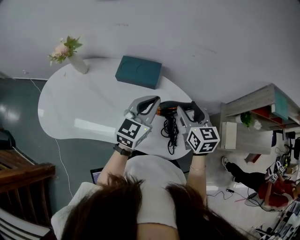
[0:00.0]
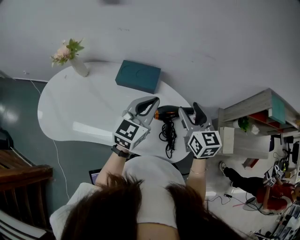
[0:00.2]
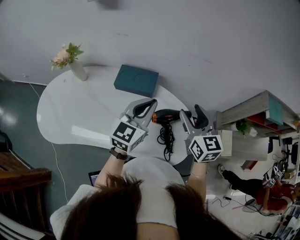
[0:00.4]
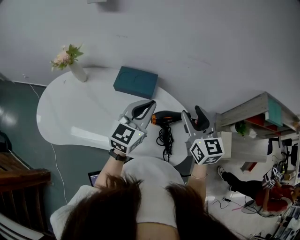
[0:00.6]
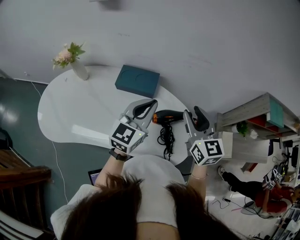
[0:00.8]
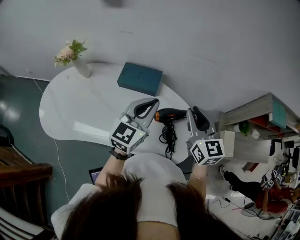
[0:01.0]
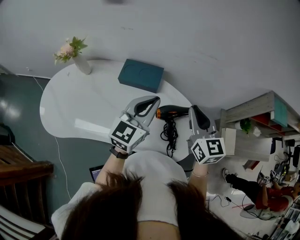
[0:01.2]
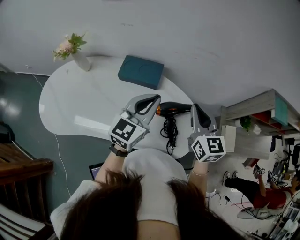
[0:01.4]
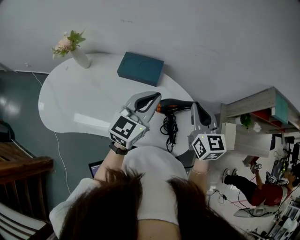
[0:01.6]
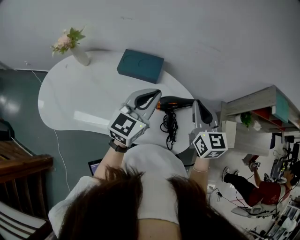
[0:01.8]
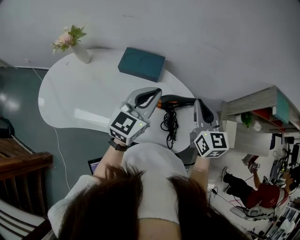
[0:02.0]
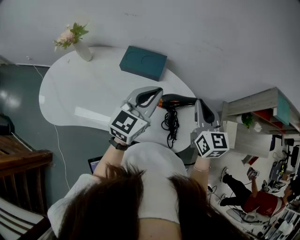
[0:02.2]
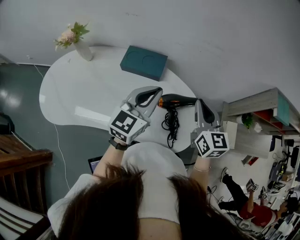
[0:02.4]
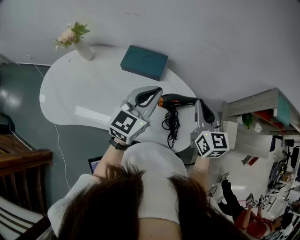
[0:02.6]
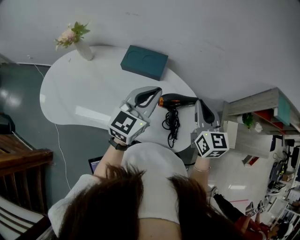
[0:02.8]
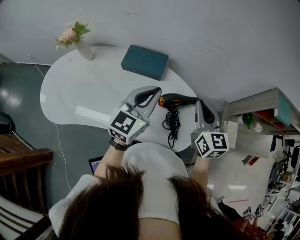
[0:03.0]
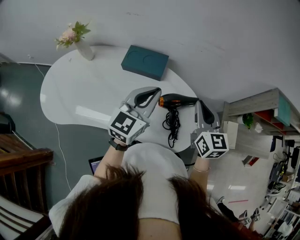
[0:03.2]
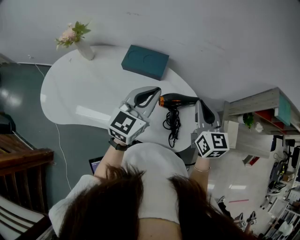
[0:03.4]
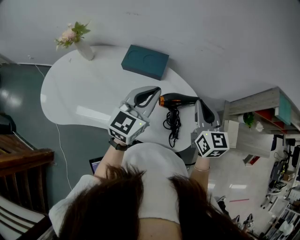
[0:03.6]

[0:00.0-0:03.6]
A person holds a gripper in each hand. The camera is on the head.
0:00.0 to 0:01.8: The right gripper travels upward by approximately 5 cm, and closes up.
0:01.8 to 0:03.6: The grippers move only a little.

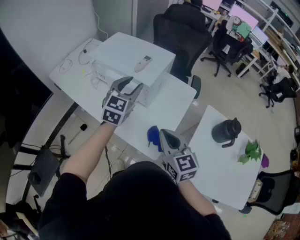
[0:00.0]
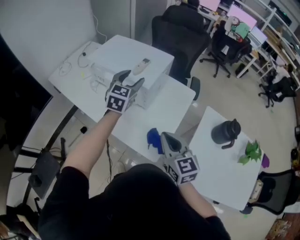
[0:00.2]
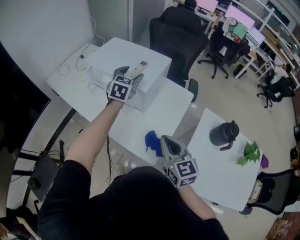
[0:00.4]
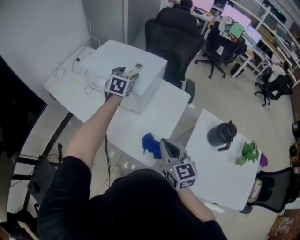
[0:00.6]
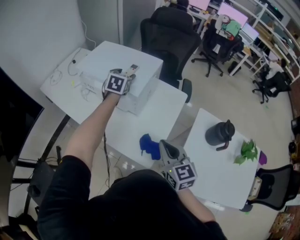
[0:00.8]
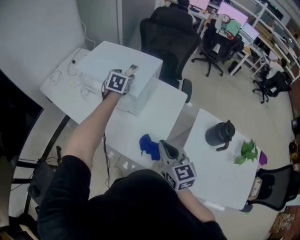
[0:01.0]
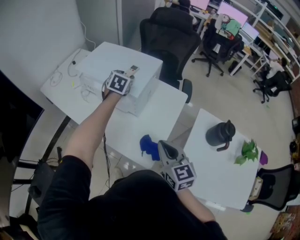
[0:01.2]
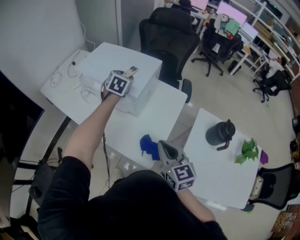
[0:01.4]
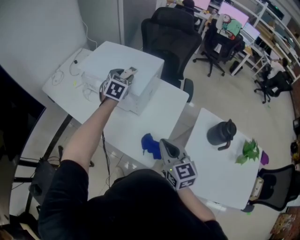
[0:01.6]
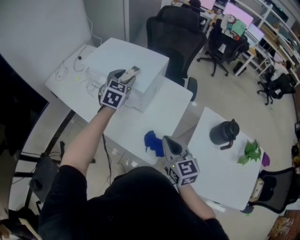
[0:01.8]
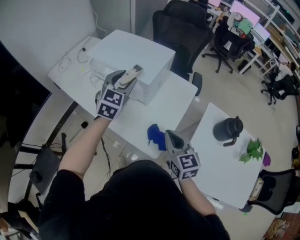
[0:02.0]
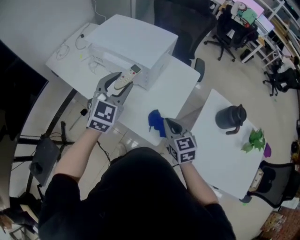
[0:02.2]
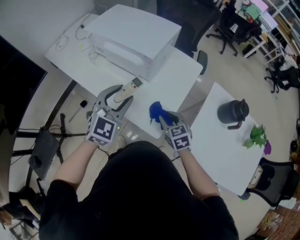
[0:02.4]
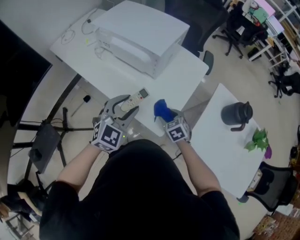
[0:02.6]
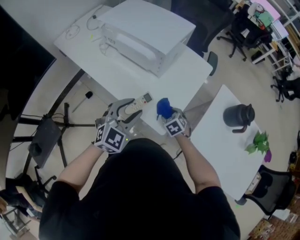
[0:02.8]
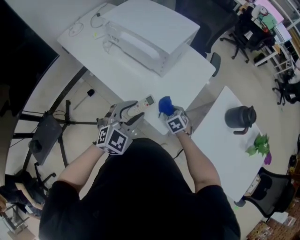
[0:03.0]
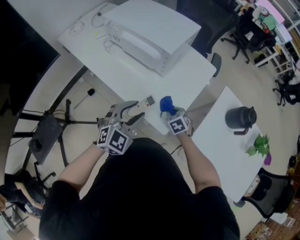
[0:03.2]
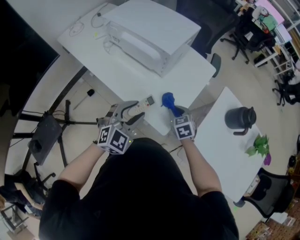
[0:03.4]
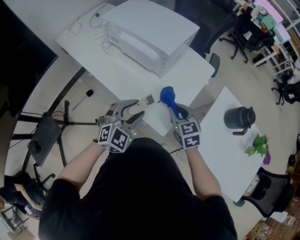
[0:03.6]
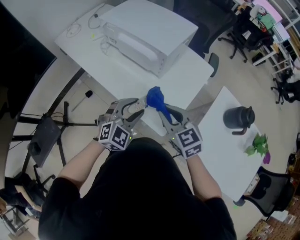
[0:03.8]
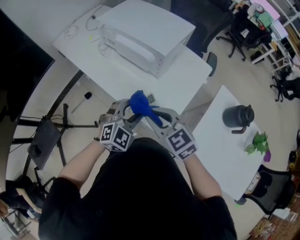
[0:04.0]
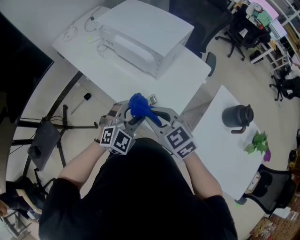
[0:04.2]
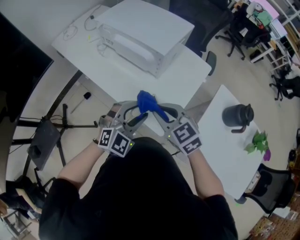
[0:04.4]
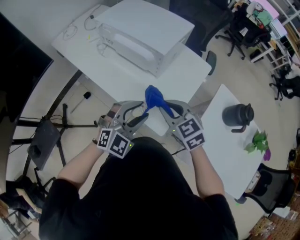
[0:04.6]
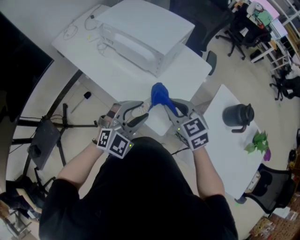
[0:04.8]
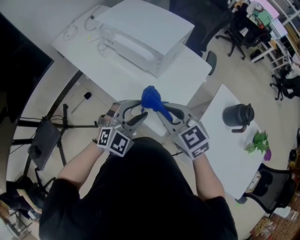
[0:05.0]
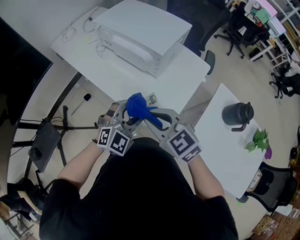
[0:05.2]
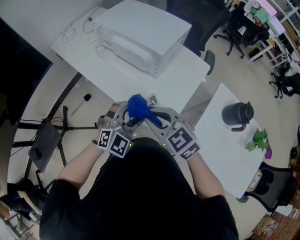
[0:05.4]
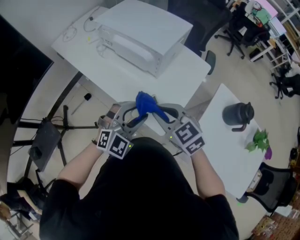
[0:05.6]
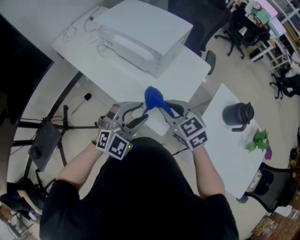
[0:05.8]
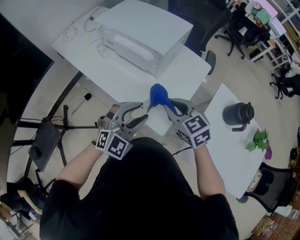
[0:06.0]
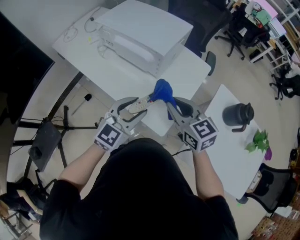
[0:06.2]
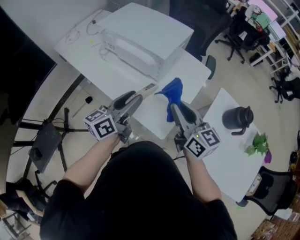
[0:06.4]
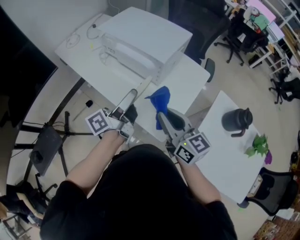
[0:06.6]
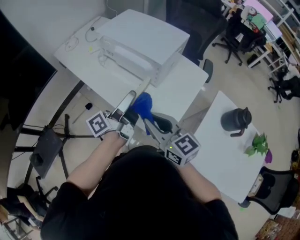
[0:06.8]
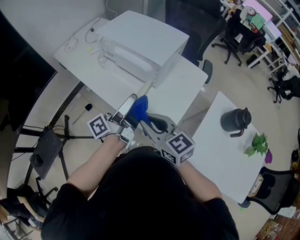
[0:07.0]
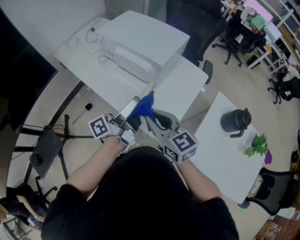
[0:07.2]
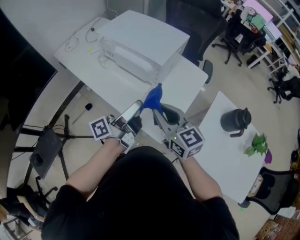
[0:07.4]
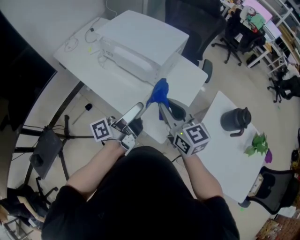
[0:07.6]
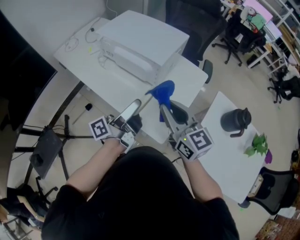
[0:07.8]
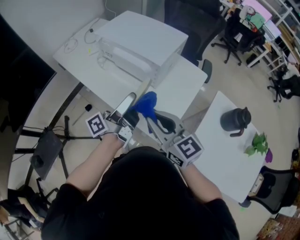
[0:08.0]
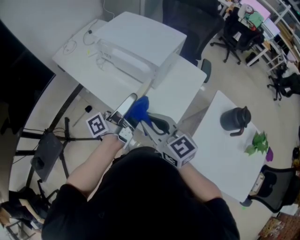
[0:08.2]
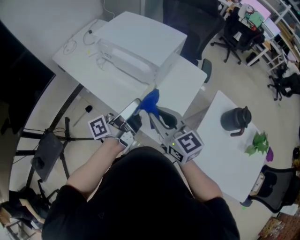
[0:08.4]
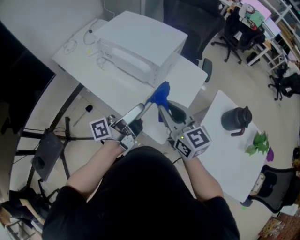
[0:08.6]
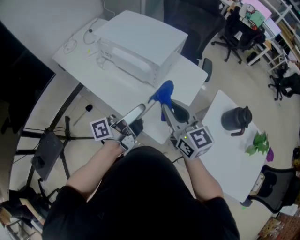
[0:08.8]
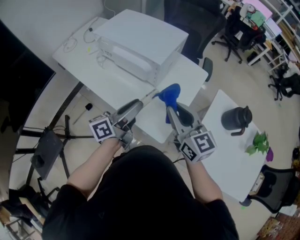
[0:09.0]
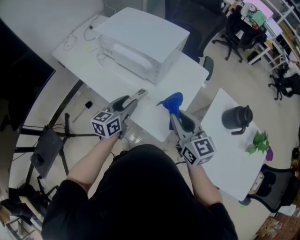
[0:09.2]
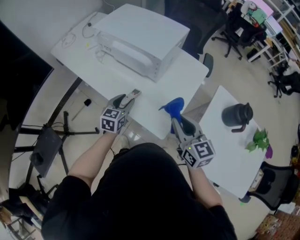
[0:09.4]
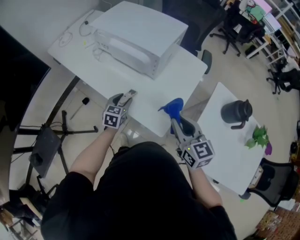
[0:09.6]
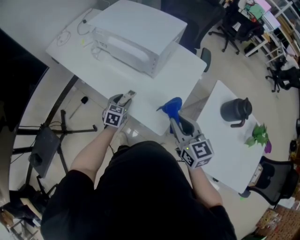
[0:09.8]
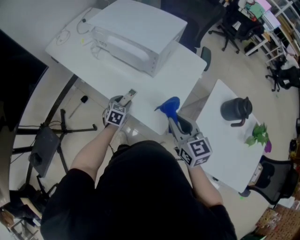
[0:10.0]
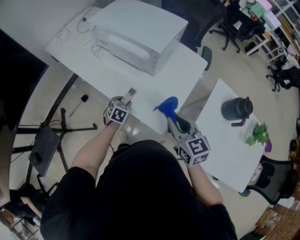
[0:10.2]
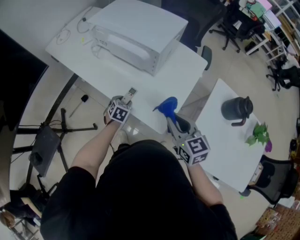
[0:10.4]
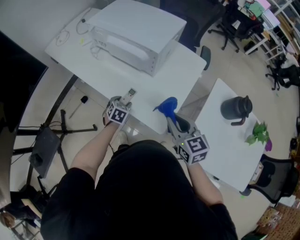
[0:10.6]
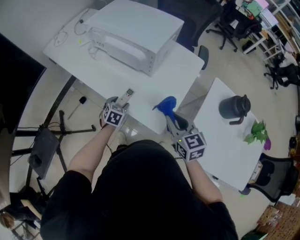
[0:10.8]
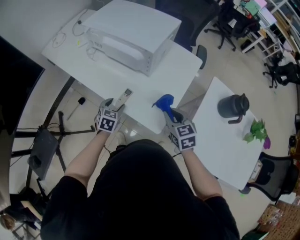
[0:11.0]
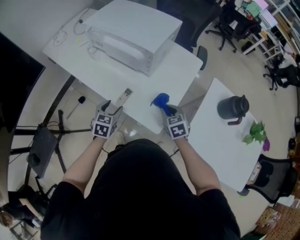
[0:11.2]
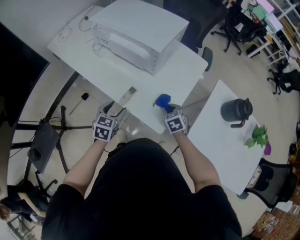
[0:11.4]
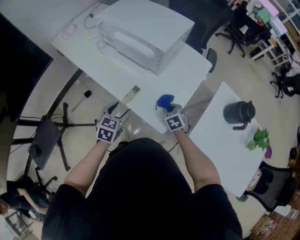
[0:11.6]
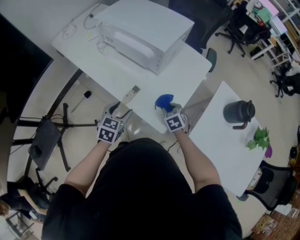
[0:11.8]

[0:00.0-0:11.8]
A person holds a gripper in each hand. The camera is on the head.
0:00.0 to 0:01.4: The left gripper heads forward and downward, covering some 15 cm, changes its angle by roughly 30 degrees, and opens, then closes once more.
0:01.4 to 0:03.0: The right gripper is displaced downward by approximately 30 cm, tips its fingers downward by some 40 degrees, and opens. Meanwhile the left gripper travels backward by roughly 35 cm, and swivels approximately 20 degrees.
0:03.0 to 0:04.4: The right gripper goes approximately 25 cm upward, turns by about 30 degrees, and closes its fingers.
0:04.4 to 0:06.0: The right gripper moves left and right over some 5 cm, changing direction 2 times.
0:06.0 to 0:07.4: The left gripper moves forward and upward, roughly 10 cm, and twists some 110 degrees counterclockwise, seen from behind, while the right gripper travels upward by approximately 5 cm, and turns by some 20 degrees.
0:07.4 to 0:08.8: There are only small adjustments of the grippers.
0:08.8 to 0:10.4: The right gripper heads downward and backward, covering roughly 10 cm. Meanwhile the left gripper moves downward, roughly 30 cm, and tips its fingers downward by roughly 80 degrees.
0:10.4 to 0:11.8: The left gripper heads upward and backward, covering roughly 15 cm; the right gripper is displaced downward by approximately 20 cm, and tips its fingers downward by some 30 degrees.

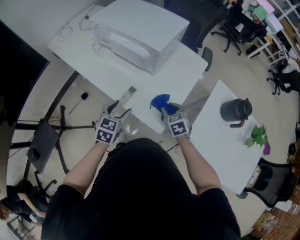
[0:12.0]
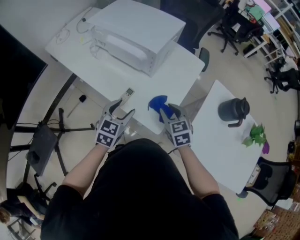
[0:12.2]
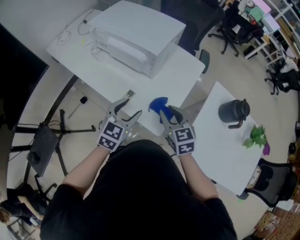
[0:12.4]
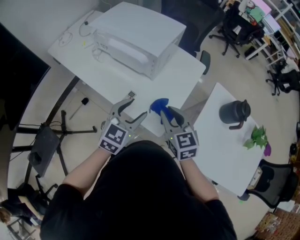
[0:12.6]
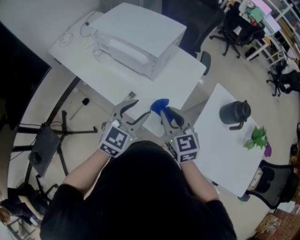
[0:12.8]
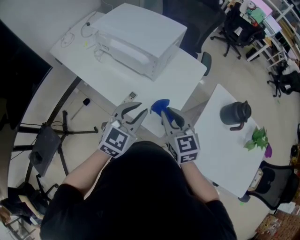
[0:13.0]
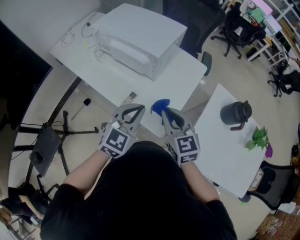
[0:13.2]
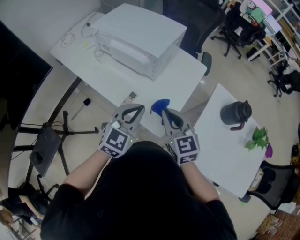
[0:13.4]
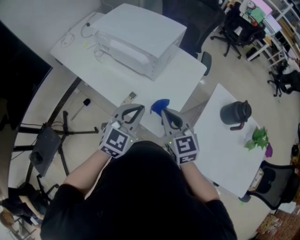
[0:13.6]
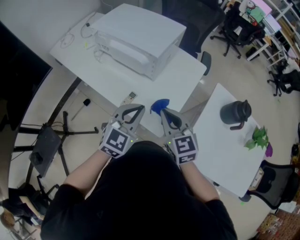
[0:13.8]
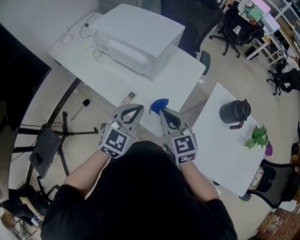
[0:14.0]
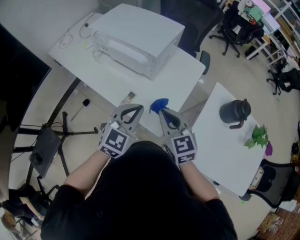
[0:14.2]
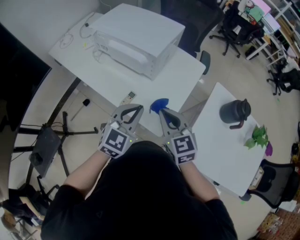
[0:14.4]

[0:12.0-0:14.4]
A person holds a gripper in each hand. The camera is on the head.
0:12.0 to 0:13.2: The left gripper heads upward and to the right, covering some 15 cm, turns by roughly 20 degrees, and closes. The right gripper goes roughly 20 cm upward, turns by about 30 degrees, and closes its fingers.
0:13.2 to 0:14.4: Neither gripper changes place.

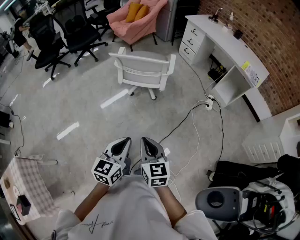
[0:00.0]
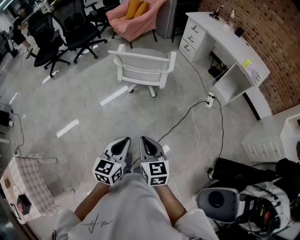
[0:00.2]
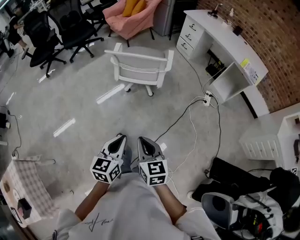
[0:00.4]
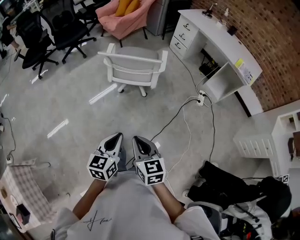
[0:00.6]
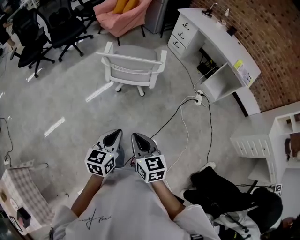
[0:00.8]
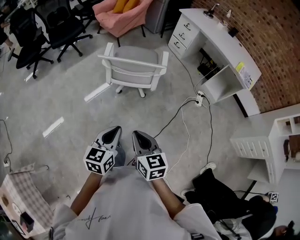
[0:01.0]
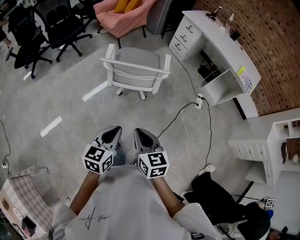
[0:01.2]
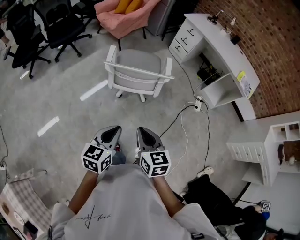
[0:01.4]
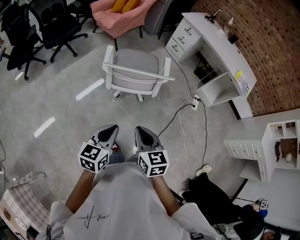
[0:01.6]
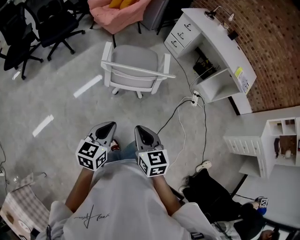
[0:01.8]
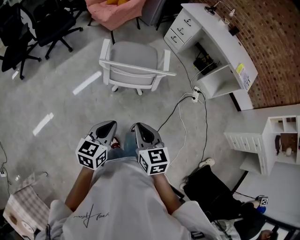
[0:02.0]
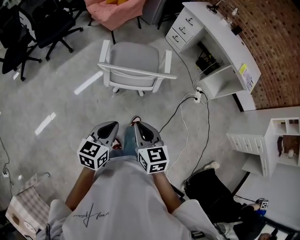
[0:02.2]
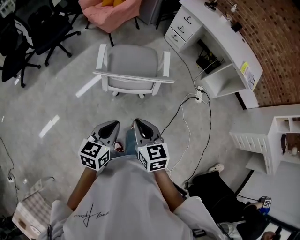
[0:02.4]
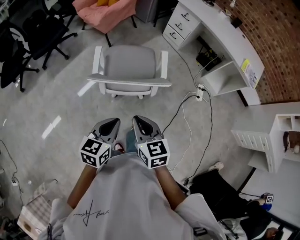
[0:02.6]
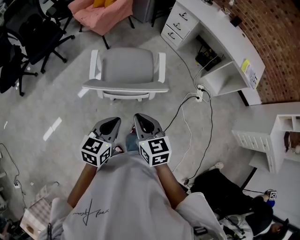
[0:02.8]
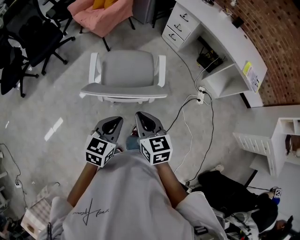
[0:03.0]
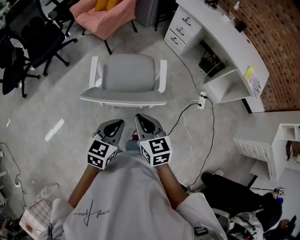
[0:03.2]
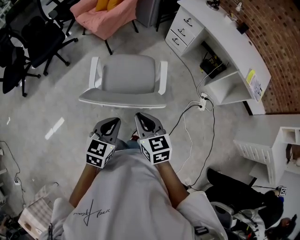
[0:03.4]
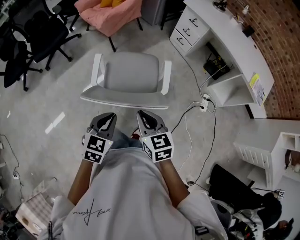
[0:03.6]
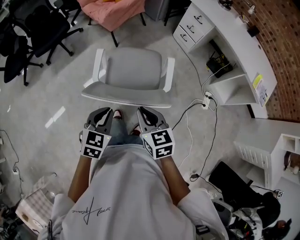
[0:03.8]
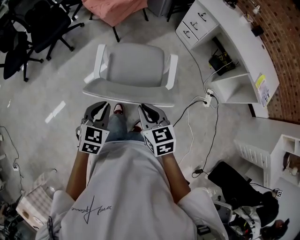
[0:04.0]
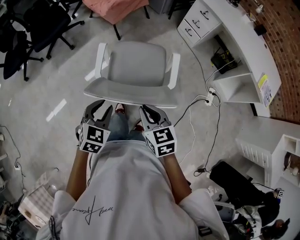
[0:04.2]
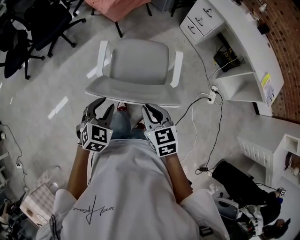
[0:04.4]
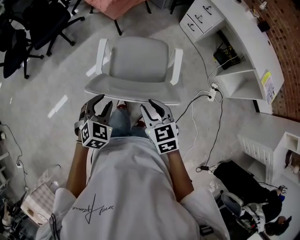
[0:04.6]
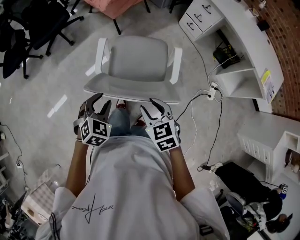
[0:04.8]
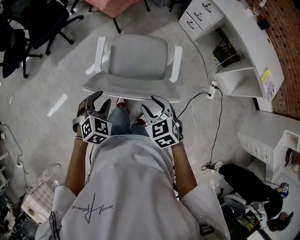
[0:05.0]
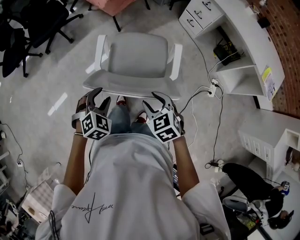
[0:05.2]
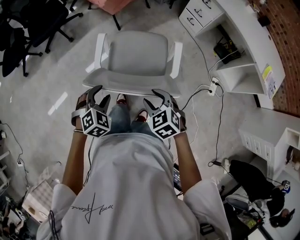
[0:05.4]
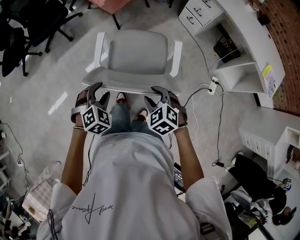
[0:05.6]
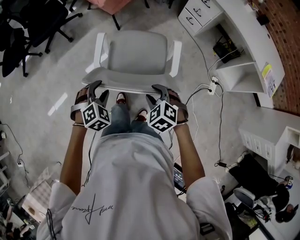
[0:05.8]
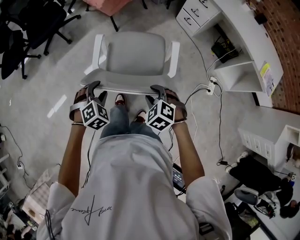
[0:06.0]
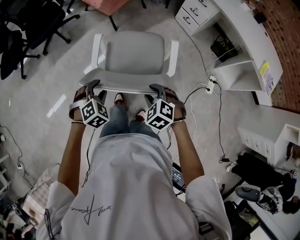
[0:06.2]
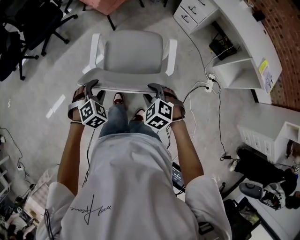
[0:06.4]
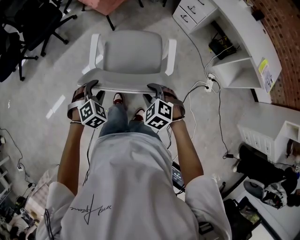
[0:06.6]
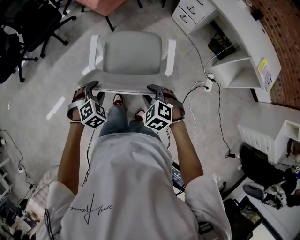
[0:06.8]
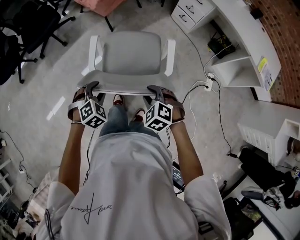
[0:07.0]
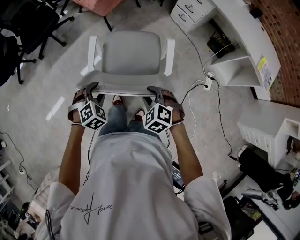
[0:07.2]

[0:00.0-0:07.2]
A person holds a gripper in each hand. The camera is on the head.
0:00.0 to 0:01.4: Both grippers move forward and to the left, roughly 25 cm.
0:01.4 to 0:02.8: Both grippers travel together forward, some 20 cm.
0:02.8 to 0:04.4: The left gripper goes about 15 cm forward, to the left and downward, rotates about 40 degrees, and opens, while the right gripper is displaced forward and downward by some 15 cm.
0:04.4 to 0:05.8: The grippers both shift downward by about 5 cm. The left gripper rotates about 20 degrees. Meanwhile the right gripper changes its angle by some 40 degrees, and opens.
0:05.8 to 0:07.2: The grippers move only a little.
